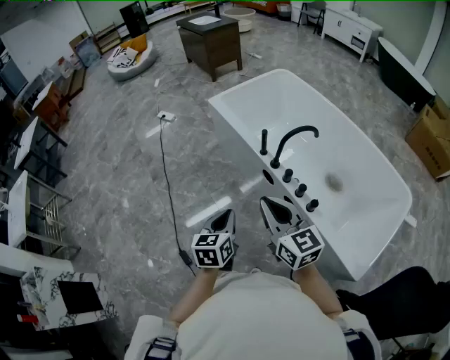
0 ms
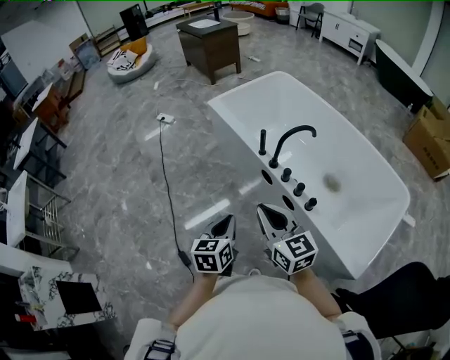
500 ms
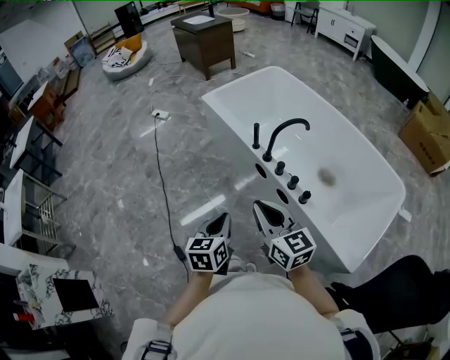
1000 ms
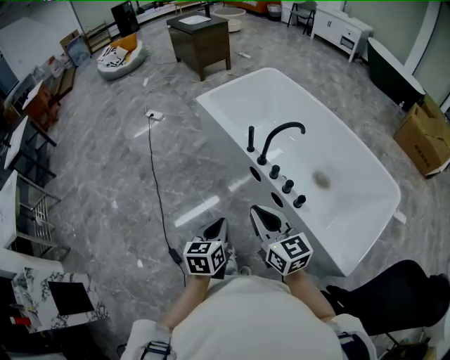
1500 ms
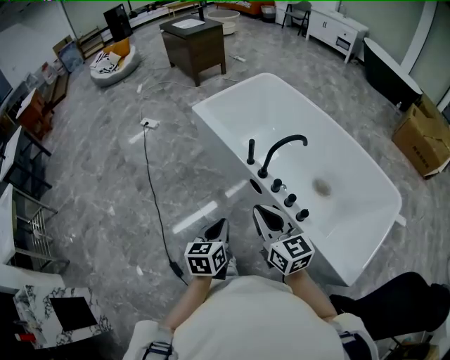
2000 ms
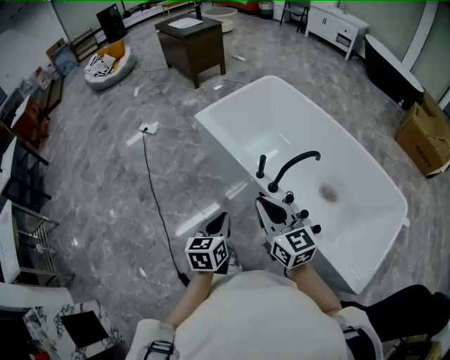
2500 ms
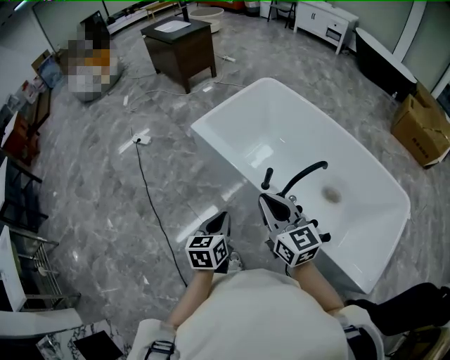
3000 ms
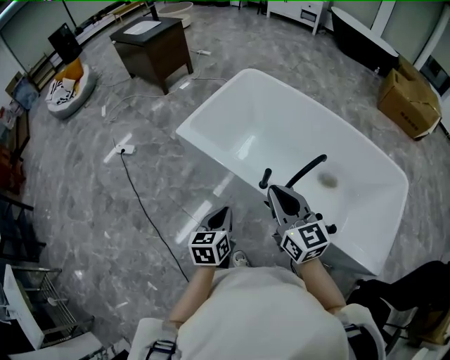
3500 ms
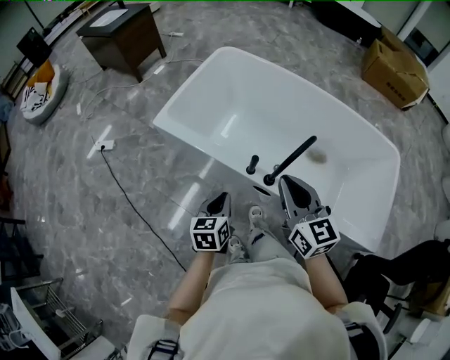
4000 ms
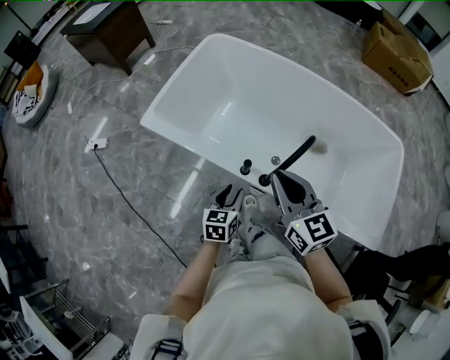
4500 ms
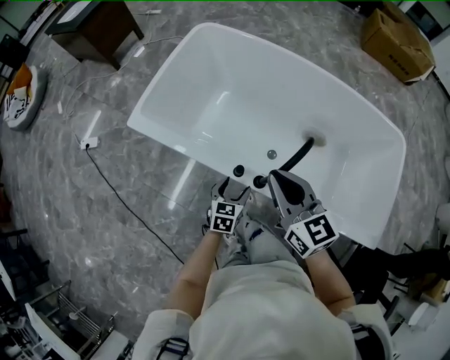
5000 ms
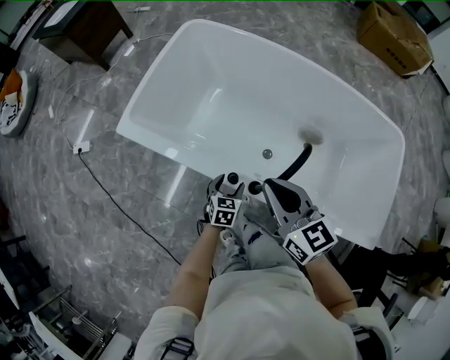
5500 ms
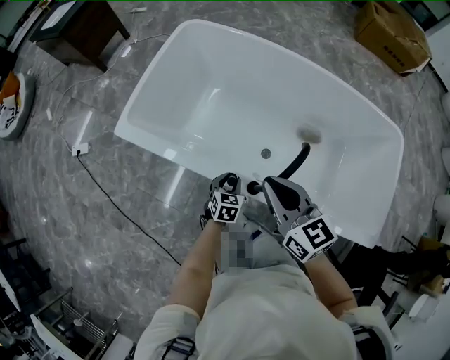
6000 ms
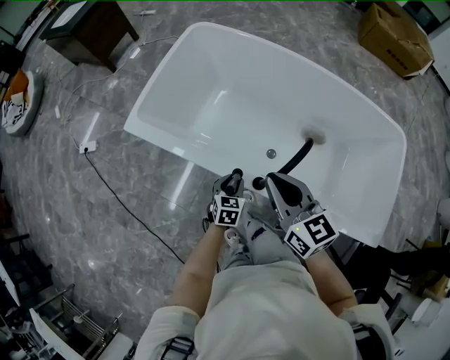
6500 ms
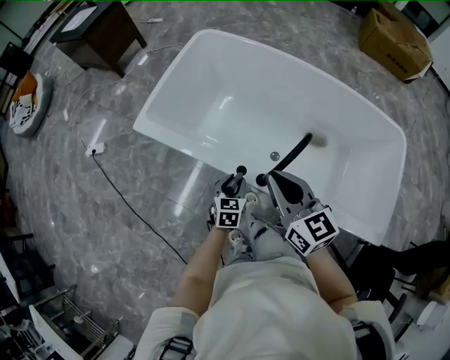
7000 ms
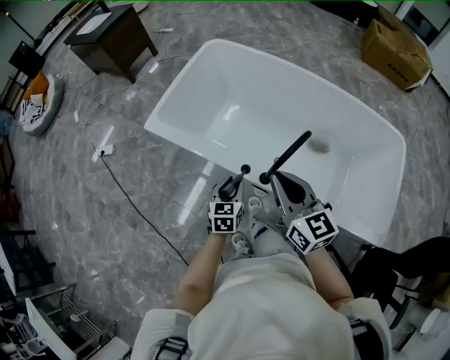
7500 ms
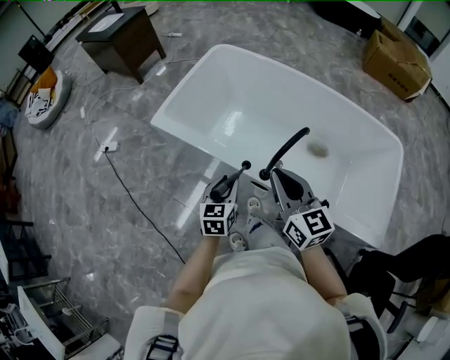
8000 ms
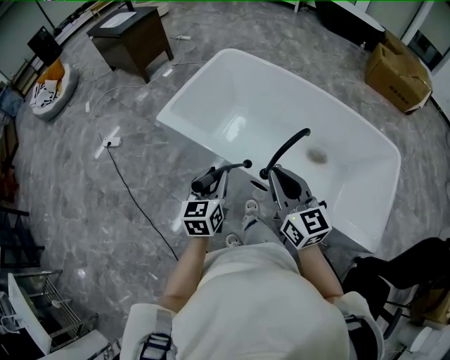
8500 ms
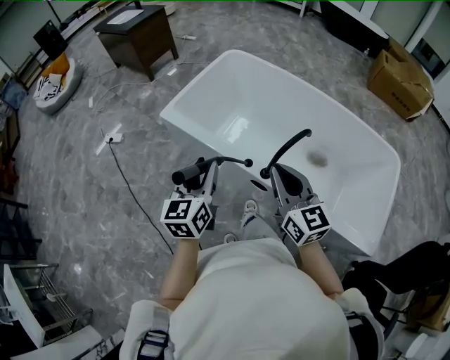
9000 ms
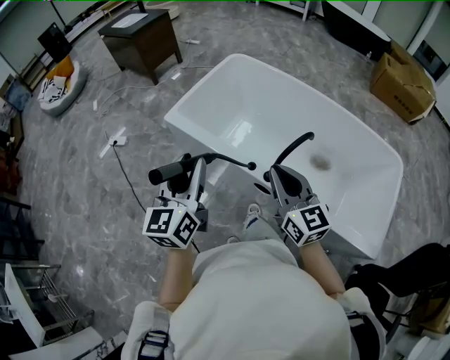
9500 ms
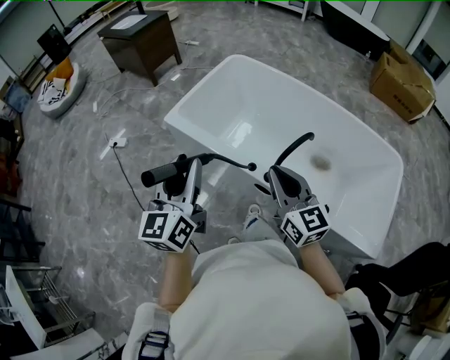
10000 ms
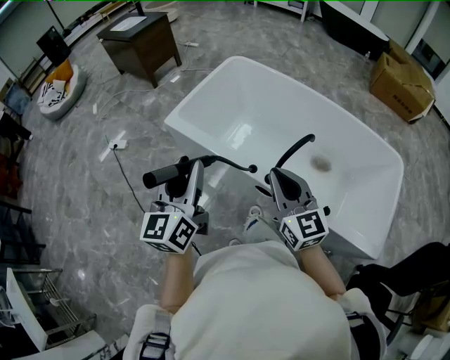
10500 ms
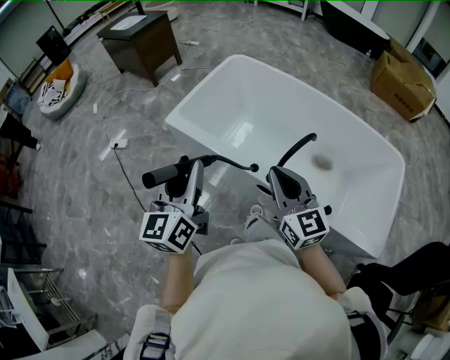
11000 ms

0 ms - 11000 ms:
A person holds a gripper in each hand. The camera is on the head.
0 ms - 2000 ms: The right gripper moves some 5 cm, while the left gripper reaches roughly 5 cm backward, then returns.
2000 ms - 3500 ms: Both grippers travel together forward, approximately 25 cm.
3500 ms - 5500 ms: The right gripper is displaced forward, downward and to the right by approximately 20 cm; the left gripper travels downward, forward and to the right by roughly 35 cm, swivels about 30 degrees, and opens.
5500 ms - 7500 ms: The right gripper shifts some 10 cm backward and upward. Meanwhile the left gripper shifts roughly 15 cm upward and backward, and closes.
7500 ms - 9000 ms: The left gripper shifts roughly 25 cm upward and to the left, and rotates some 30 degrees; the right gripper is displaced backward by some 5 cm.
9000 ms - 11000 ms: The left gripper shifts approximately 10 cm upward.

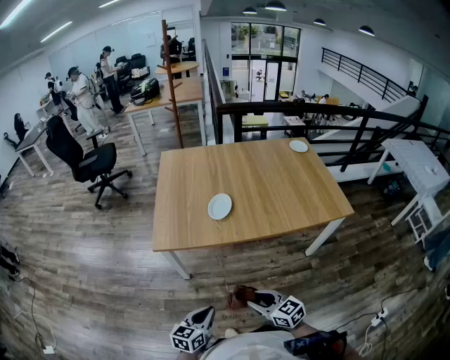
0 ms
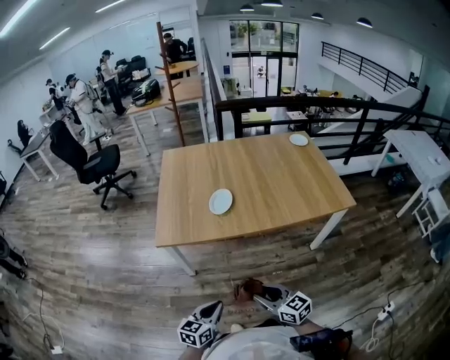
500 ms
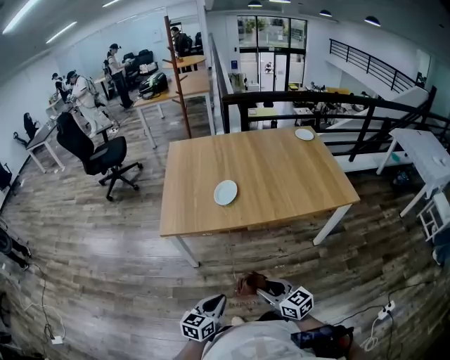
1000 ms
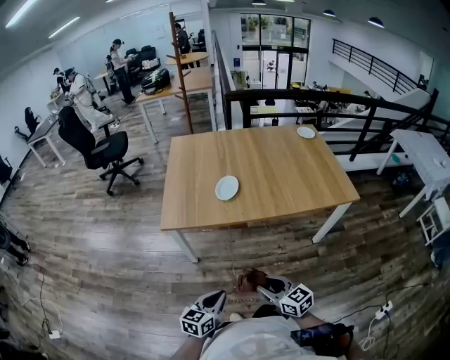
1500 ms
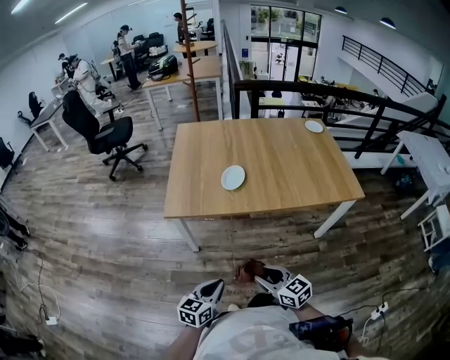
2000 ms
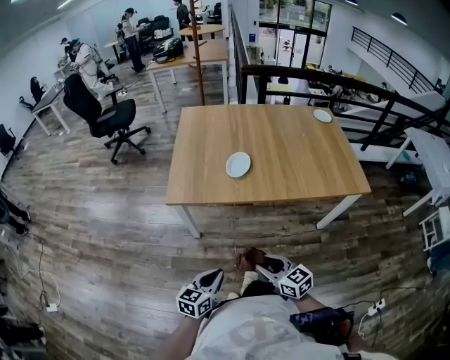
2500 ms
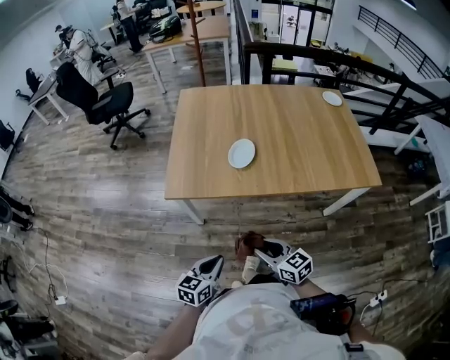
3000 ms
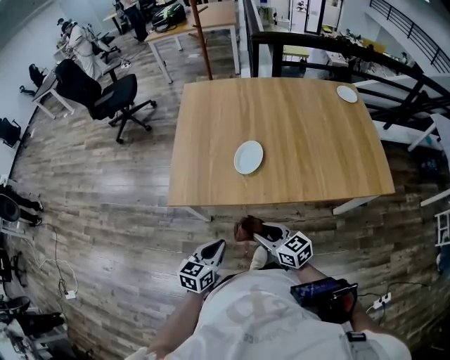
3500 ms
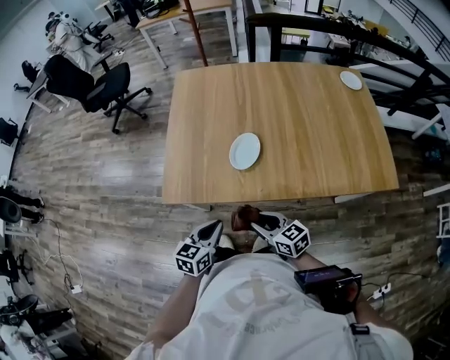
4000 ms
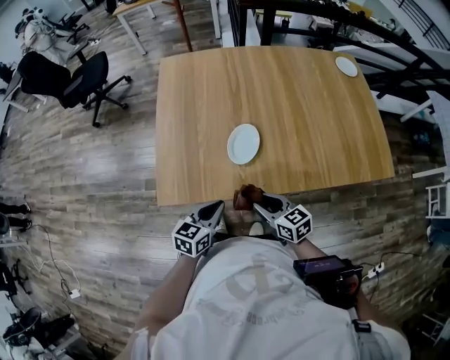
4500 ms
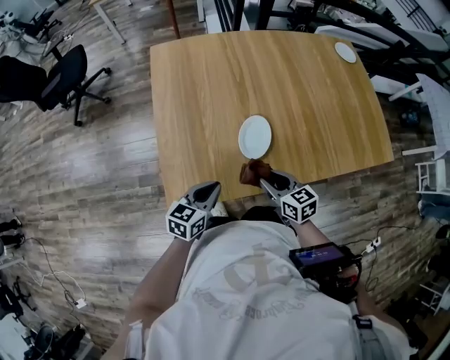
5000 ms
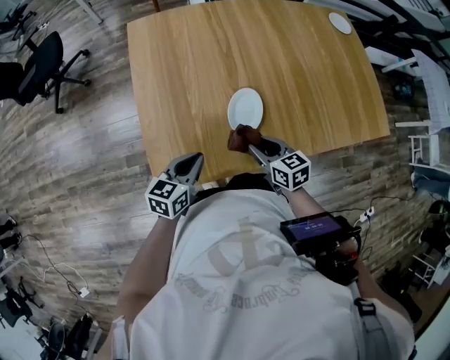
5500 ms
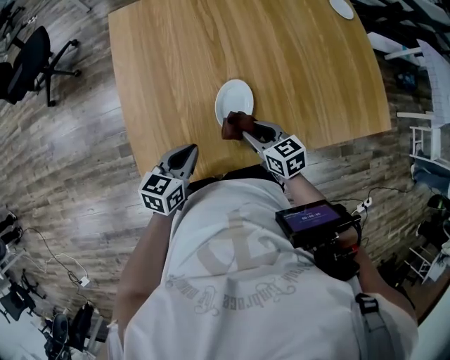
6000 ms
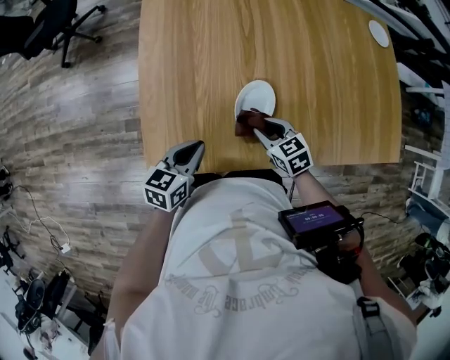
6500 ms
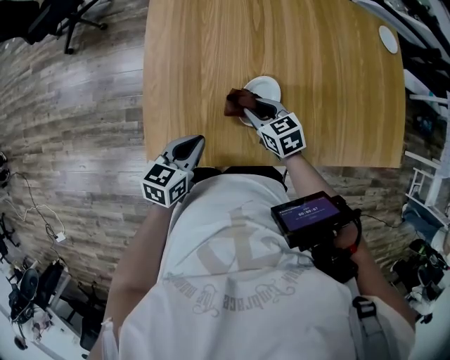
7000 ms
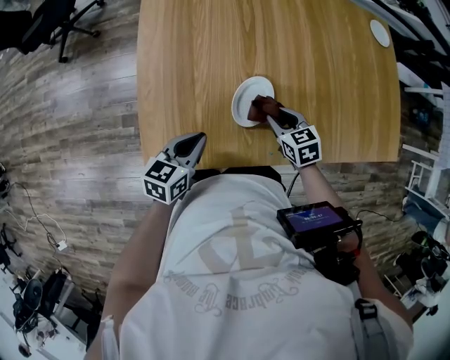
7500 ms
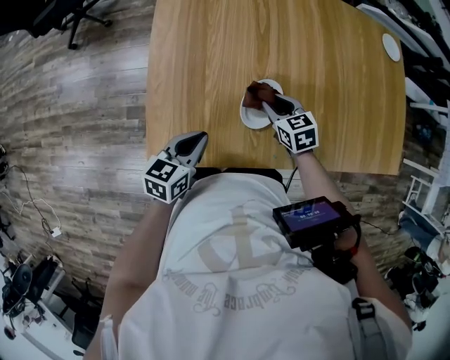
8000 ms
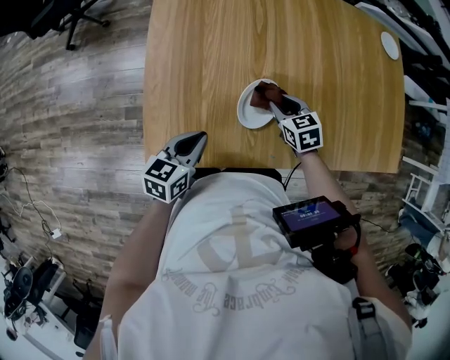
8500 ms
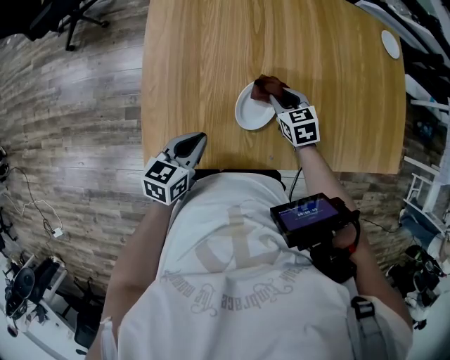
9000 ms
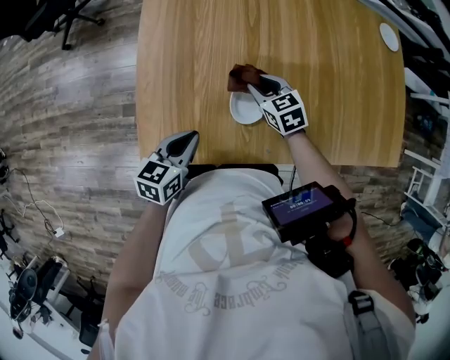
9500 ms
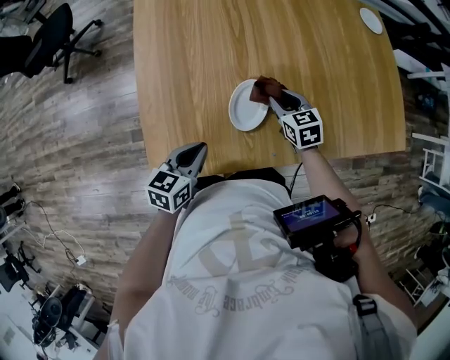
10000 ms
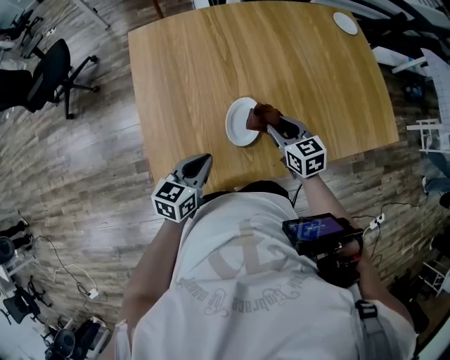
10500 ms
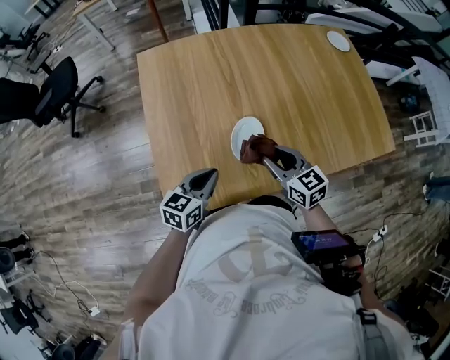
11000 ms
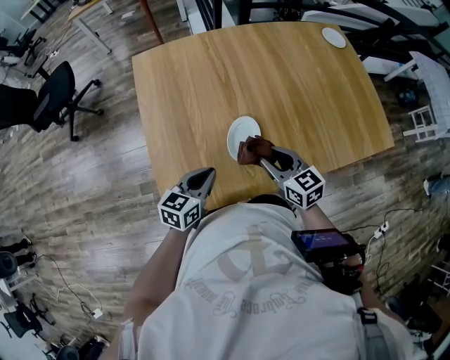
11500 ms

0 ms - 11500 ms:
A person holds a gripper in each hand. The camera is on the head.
0 ms - 2000 ms: There are only small adjustments of the grippers.
2000 ms - 4000 ms: Both grippers travel together forward, approximately 25 cm.
4000 ms - 6000 ms: The grippers both shift forward by some 20 cm. The right gripper changes its angle by some 20 degrees.
6000 ms - 7500 ms: The right gripper shifts some 5 cm forward, and travels to the left and back again, some 5 cm each way.
7500 ms - 9500 ms: The right gripper moves forward and to the left, about 10 cm.
9500 ms - 11500 ms: The left gripper ends up about 5 cm from where it was, while the right gripper shifts approximately 15 cm backward, upward and to the right, and changes its angle by approximately 30 degrees.

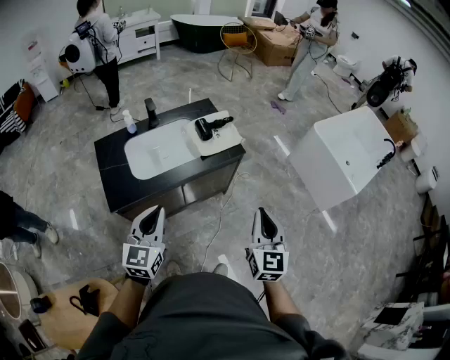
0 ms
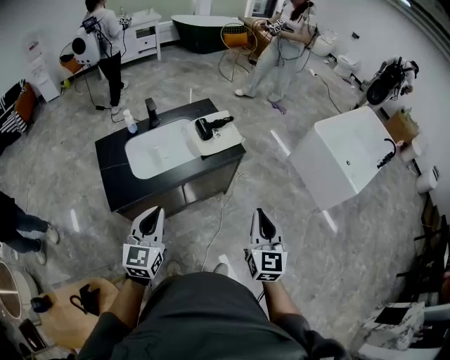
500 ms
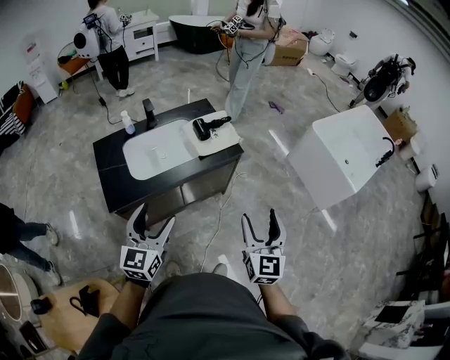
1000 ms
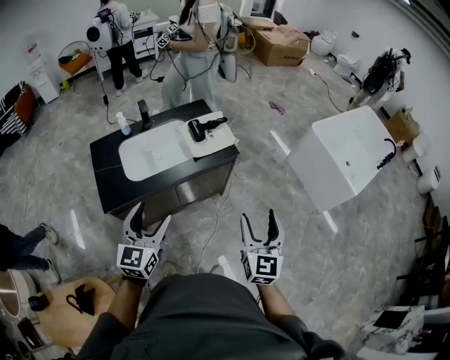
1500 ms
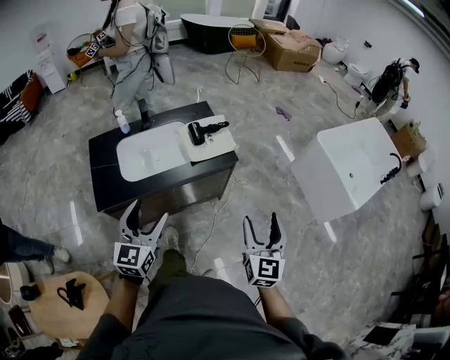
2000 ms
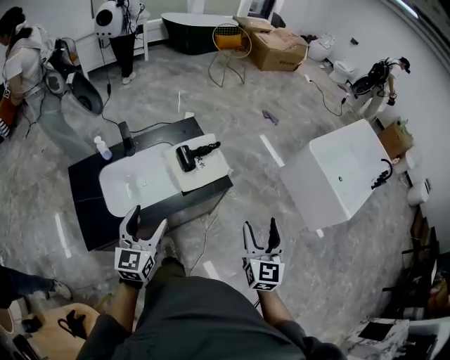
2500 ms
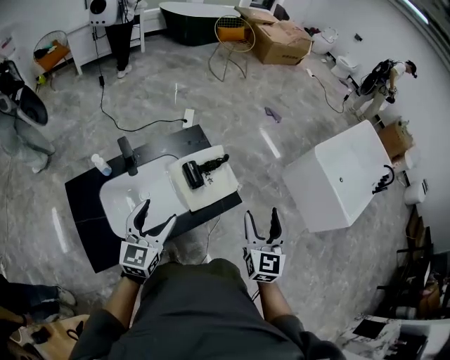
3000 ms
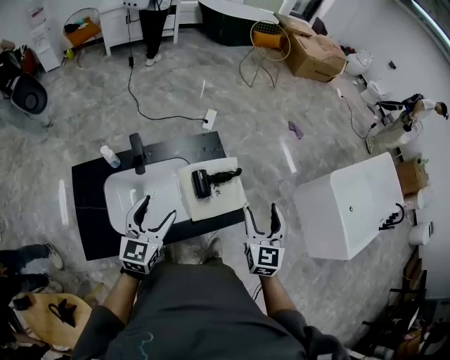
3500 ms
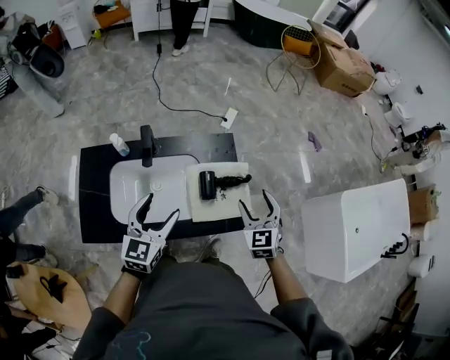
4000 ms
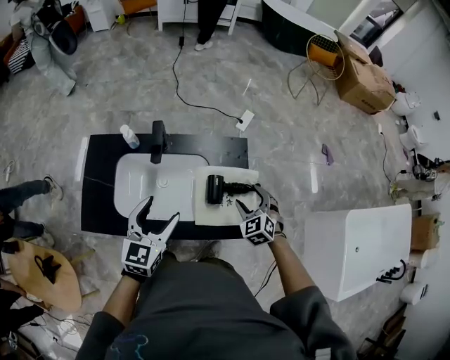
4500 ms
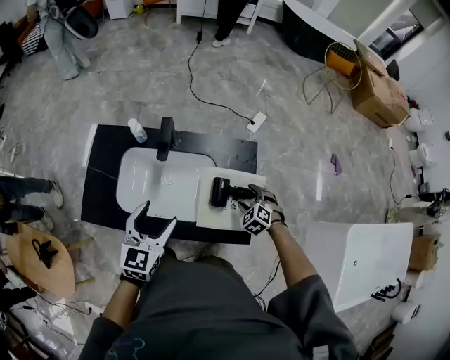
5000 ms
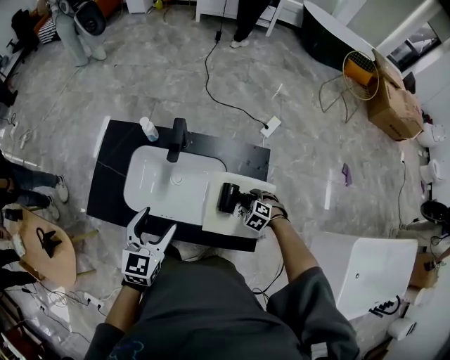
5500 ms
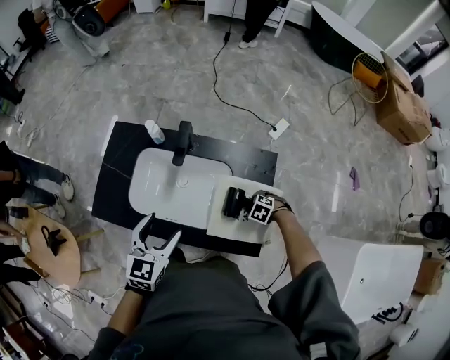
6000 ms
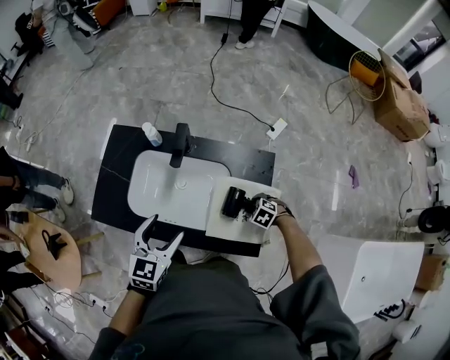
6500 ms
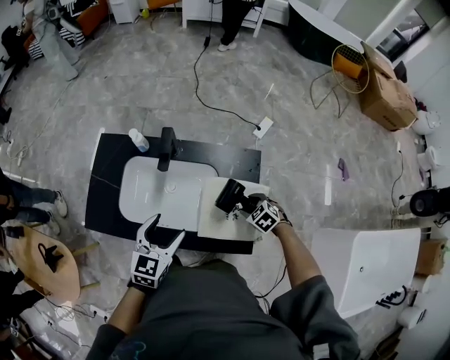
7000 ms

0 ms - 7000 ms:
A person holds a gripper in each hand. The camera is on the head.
0 ms - 2000 ms: Both grippers travel together to the right, some 5 cm. The right gripper opens up, while the left gripper opens up.
2000 ms - 3500 ms: Both grippers travel together forward, some 35 cm.
3500 ms - 5000 ms: The right gripper is displaced downward by about 25 cm, and tips its fingers downward by approximately 40 degrees; the left gripper changes its angle by some 20 degrees.
5000 ms - 7000 ms: The right gripper moves some 10 cm downward and comes back, and swivels roughly 20 degrees.
